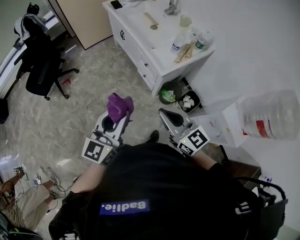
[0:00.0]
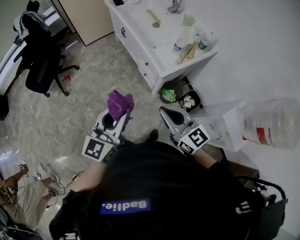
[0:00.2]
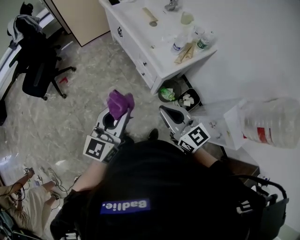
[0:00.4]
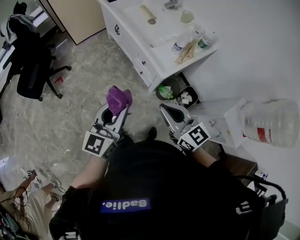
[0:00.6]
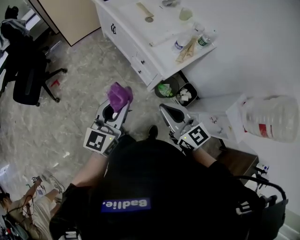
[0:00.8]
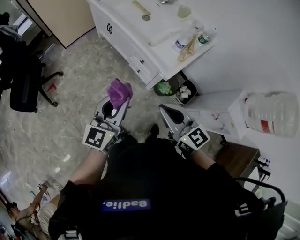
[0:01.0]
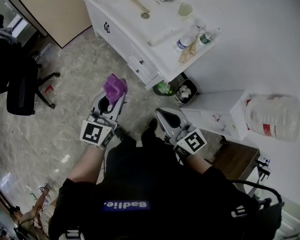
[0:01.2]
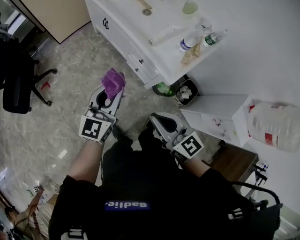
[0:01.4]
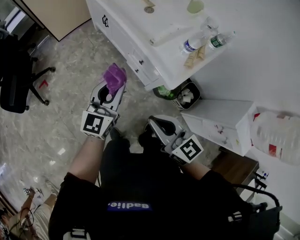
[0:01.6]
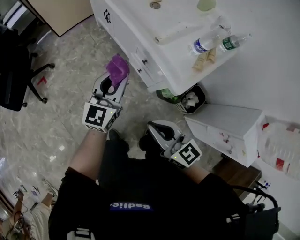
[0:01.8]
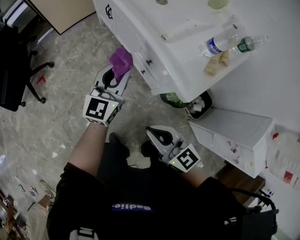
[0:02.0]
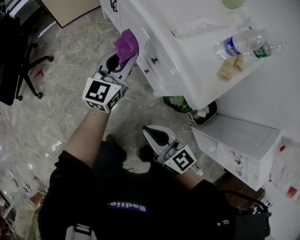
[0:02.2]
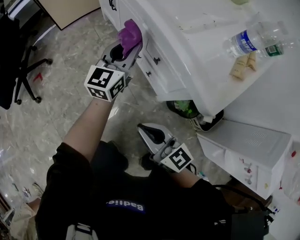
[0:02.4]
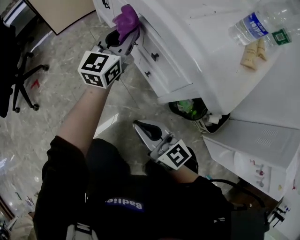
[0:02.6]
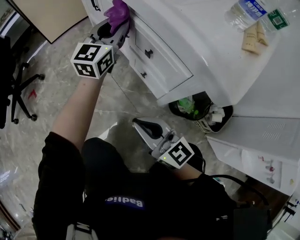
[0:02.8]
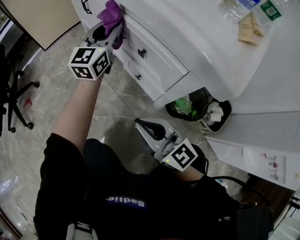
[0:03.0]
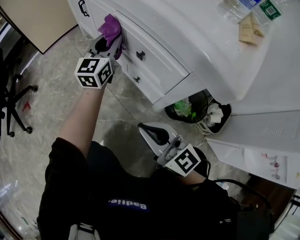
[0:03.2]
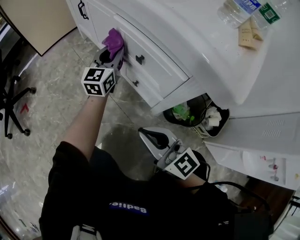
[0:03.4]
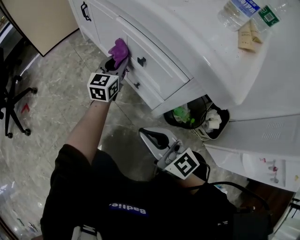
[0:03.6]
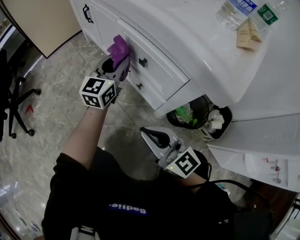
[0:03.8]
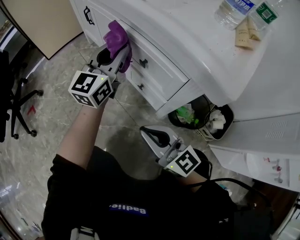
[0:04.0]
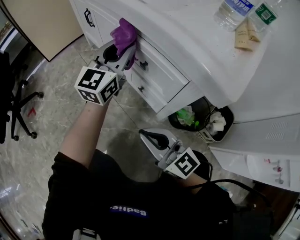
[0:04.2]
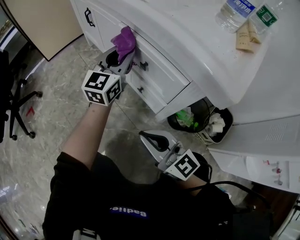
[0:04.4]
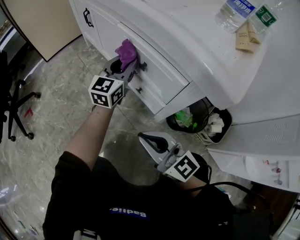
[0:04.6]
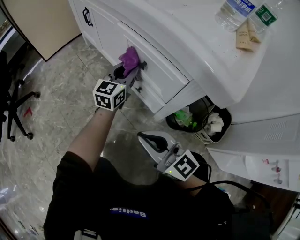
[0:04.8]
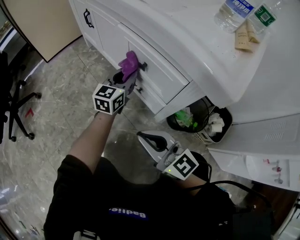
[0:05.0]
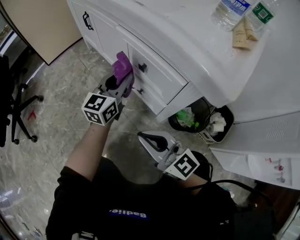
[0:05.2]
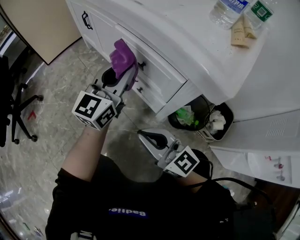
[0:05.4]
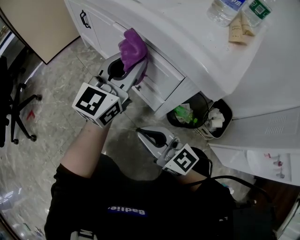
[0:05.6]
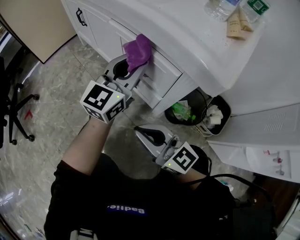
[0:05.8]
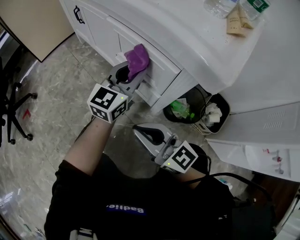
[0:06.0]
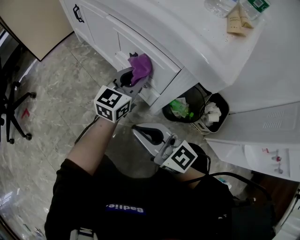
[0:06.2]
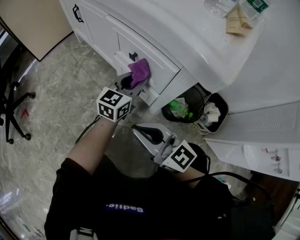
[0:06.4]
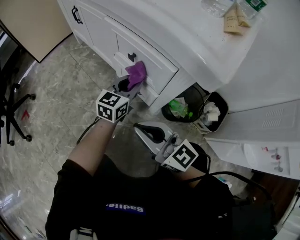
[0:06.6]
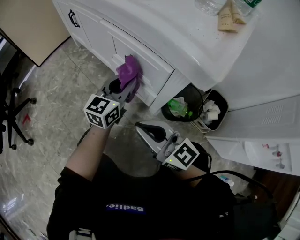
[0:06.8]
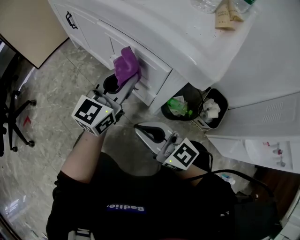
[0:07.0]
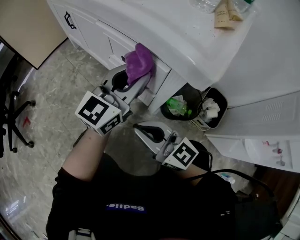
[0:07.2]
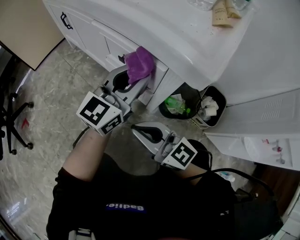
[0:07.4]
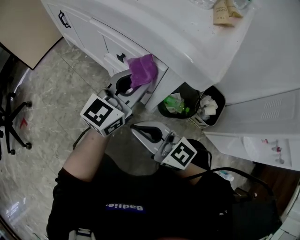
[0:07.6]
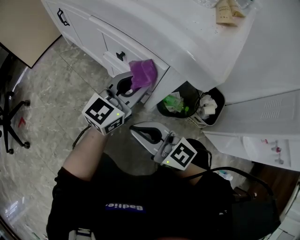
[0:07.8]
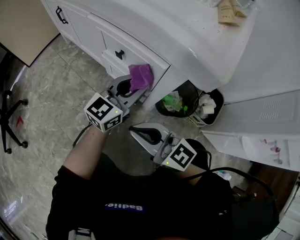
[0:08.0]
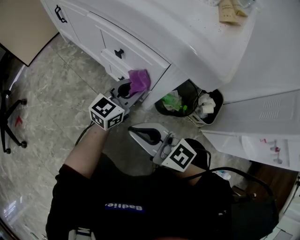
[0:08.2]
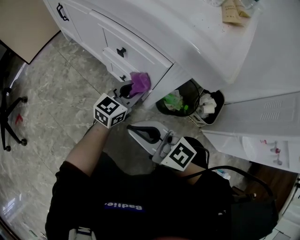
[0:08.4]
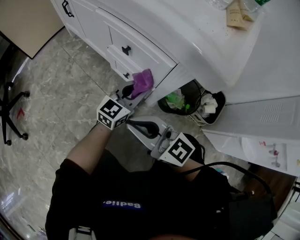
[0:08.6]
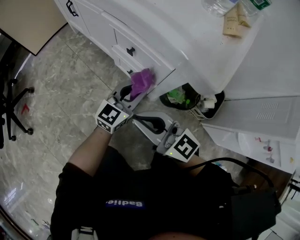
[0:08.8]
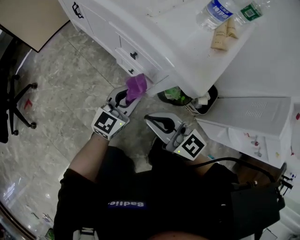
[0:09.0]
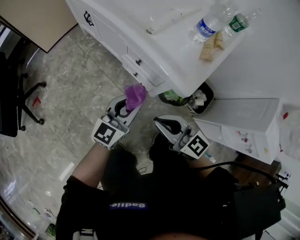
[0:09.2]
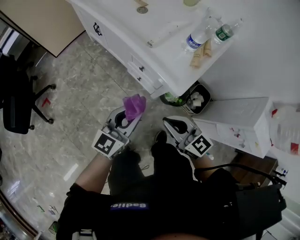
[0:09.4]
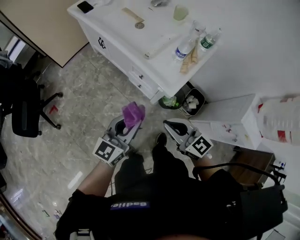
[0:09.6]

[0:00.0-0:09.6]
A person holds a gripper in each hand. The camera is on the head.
0:00.0 to 0:01.6: The right gripper heads forward and downward, covering approximately 25 cm. The left gripper travels forward and downward by about 40 cm.
0:01.6 to 0:03.2: The left gripper moves downward and forward, approximately 40 cm, while the right gripper shifts roughly 40 cm downward.
0:03.2 to 0:04.8: The left gripper moves up and down over some 15 cm, changing direction 2 times.
0:04.8 to 0:06.4: The left gripper shifts about 10 cm backward and to the right, and travels upward and back again, approximately 15 cm each way.
0:06.4 to 0:08.0: The left gripper travels upward and back again, some 15 cm each way.
0:08.0 to 0:09.6: The left gripper shifts some 40 cm upward and backward, while the right gripper is displaced upward by about 40 cm.

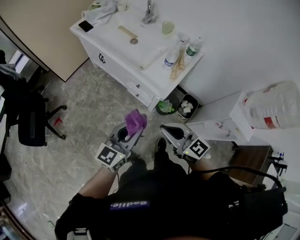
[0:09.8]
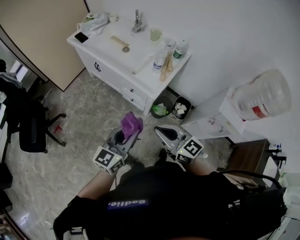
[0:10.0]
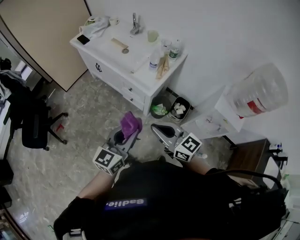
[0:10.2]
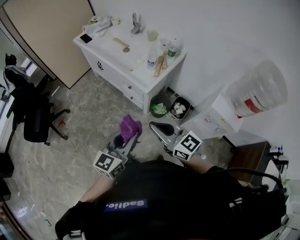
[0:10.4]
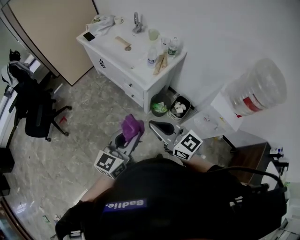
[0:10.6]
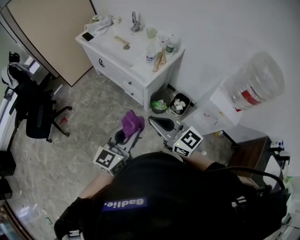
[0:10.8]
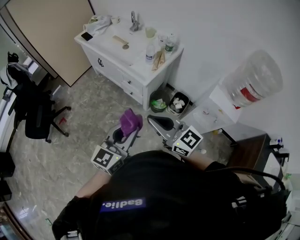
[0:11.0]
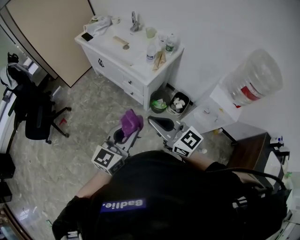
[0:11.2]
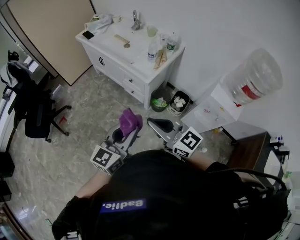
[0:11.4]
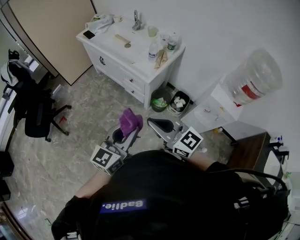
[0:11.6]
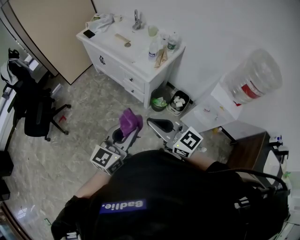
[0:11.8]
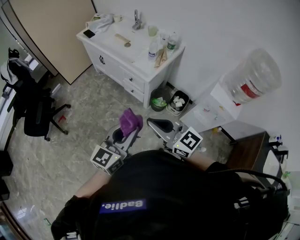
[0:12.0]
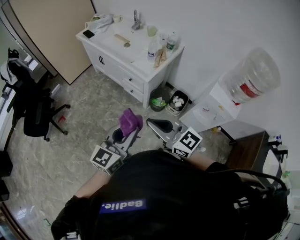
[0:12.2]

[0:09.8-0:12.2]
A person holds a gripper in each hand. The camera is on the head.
0:09.8 to 0:11.0: The two grippers go some 25 cm backward and upward.
0:11.0 to 0:12.2: The right gripper changes place by approximately 5 cm.

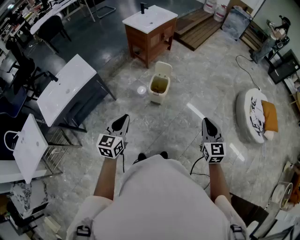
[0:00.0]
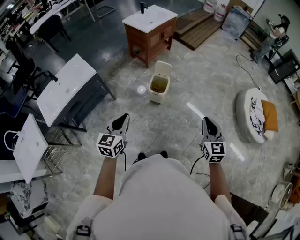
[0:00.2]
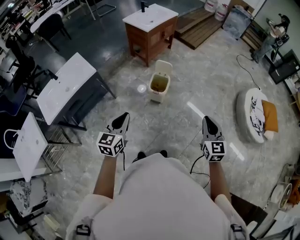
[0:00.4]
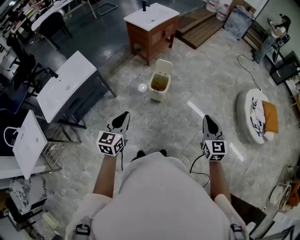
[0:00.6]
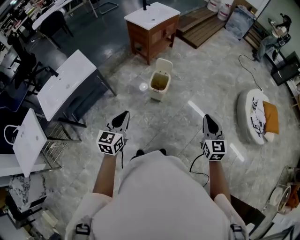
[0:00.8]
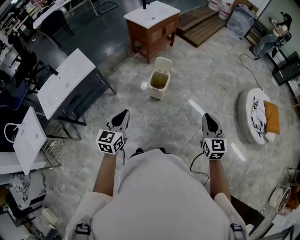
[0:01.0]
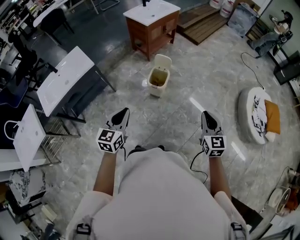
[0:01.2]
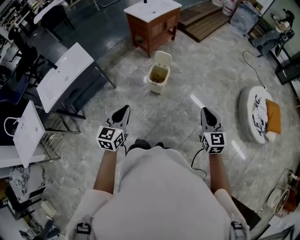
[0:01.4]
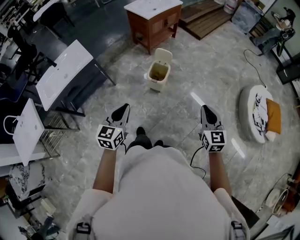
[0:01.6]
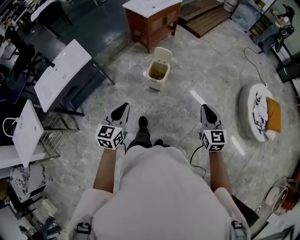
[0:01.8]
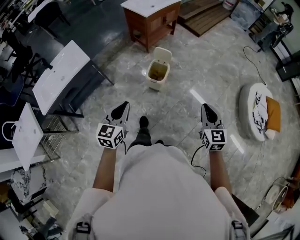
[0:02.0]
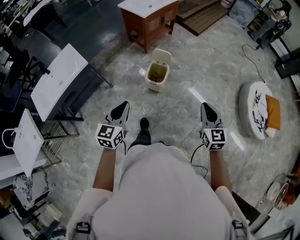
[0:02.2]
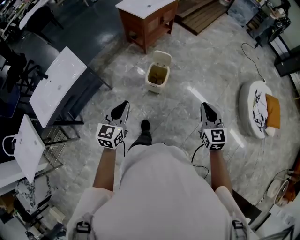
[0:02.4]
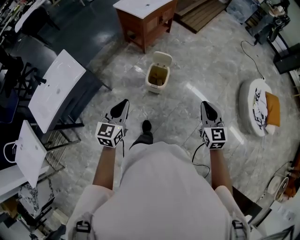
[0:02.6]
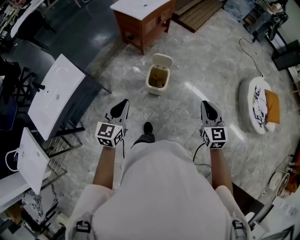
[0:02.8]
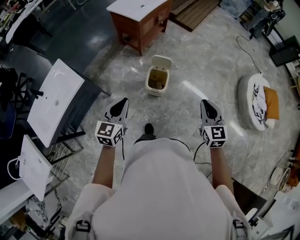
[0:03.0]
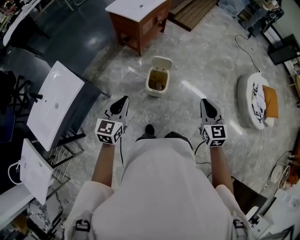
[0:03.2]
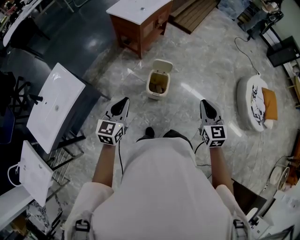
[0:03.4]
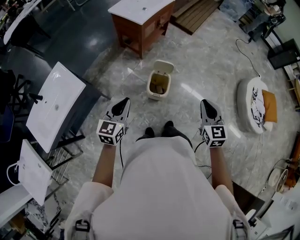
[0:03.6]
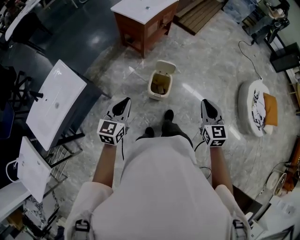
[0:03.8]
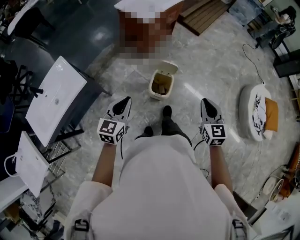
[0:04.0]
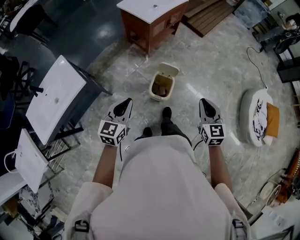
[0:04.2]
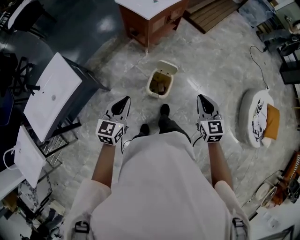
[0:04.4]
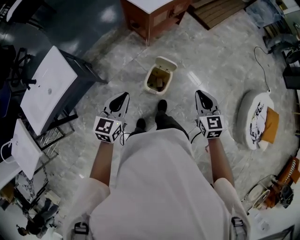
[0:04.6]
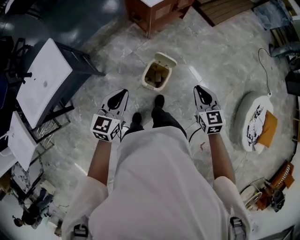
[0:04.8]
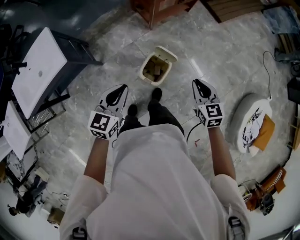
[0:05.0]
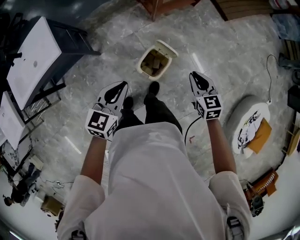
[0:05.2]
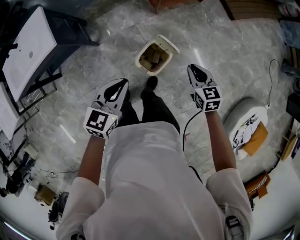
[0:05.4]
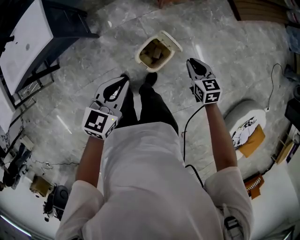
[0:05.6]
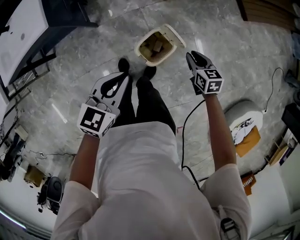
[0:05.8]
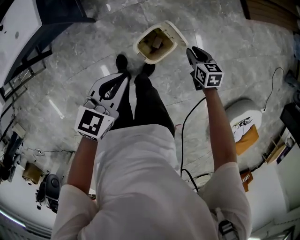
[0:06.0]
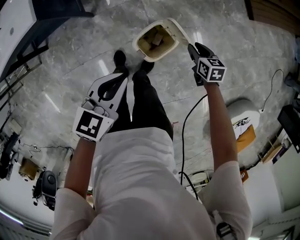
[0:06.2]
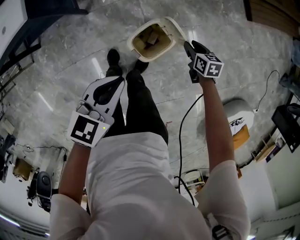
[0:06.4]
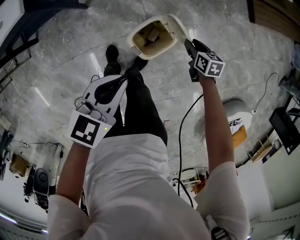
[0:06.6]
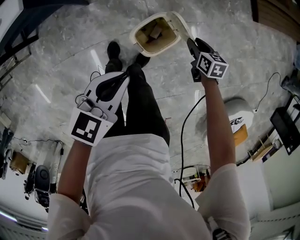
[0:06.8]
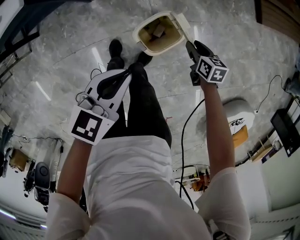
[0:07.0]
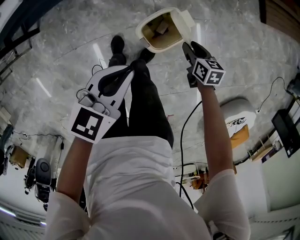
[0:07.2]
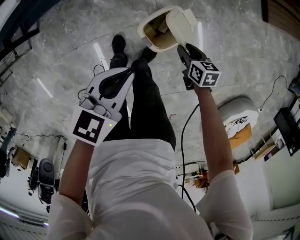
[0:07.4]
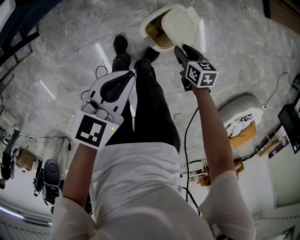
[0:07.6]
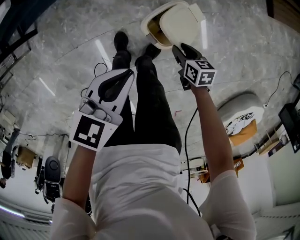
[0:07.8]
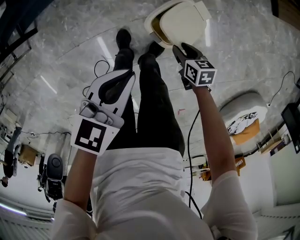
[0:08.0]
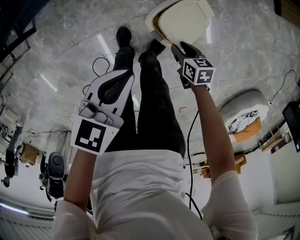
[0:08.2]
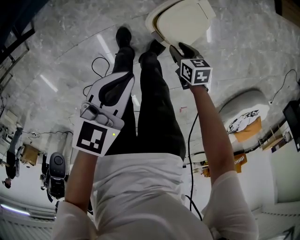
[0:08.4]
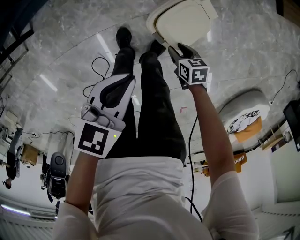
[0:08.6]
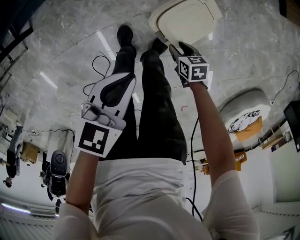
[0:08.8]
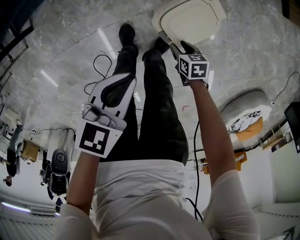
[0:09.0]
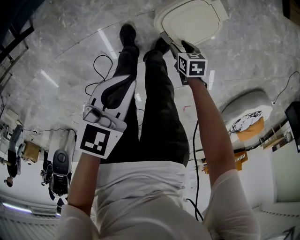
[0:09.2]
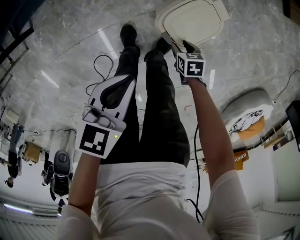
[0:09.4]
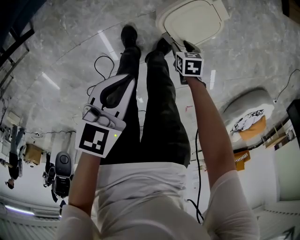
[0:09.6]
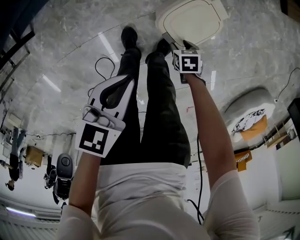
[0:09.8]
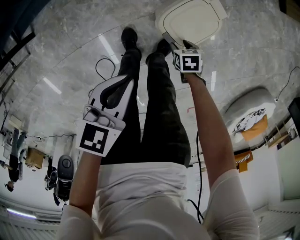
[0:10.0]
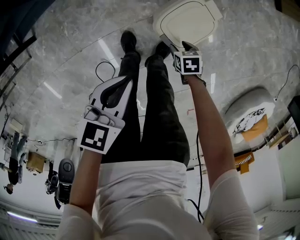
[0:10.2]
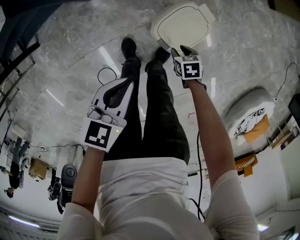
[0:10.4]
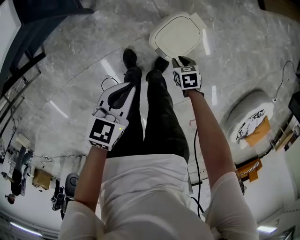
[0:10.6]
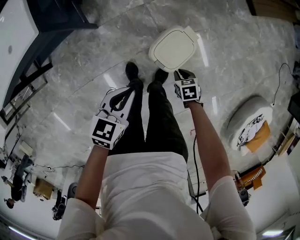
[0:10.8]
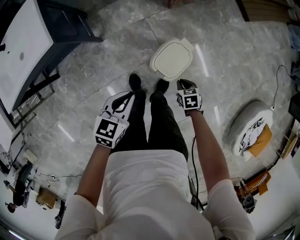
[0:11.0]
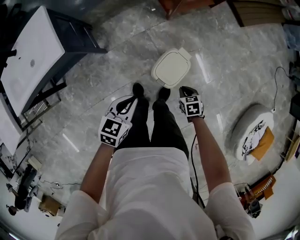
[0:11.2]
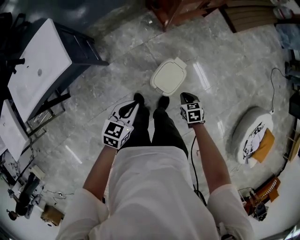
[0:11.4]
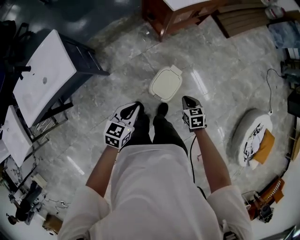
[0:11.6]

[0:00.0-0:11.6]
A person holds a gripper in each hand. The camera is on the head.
0:00.0 to 0:01.4: The left gripper goes some 5 cm to the right. The right gripper shifts by approximately 5 cm.
0:01.4 to 0:02.8: The two grippers go about 20 cm forward and to the left.
0:02.8 to 0:04.4: The two grippers go roughly 15 cm forward.
0:04.4 to 0:05.8: The left gripper shifts by some 15 cm. Meanwhile the right gripper travels downward by about 30 cm, and rotates about 40 degrees.
0:05.8 to 0:07.2: The grippers both shift downward by approximately 10 cm.
0:07.2 to 0:08.8: The left gripper goes roughly 10 cm downward and to the left, while the right gripper heads downward, to the left and backward, covering roughly 20 cm.
0:08.8 to 0:10.2: The grippers make only small movements.
0:10.2 to 0:11.6: The left gripper moves upward, about 15 cm. The right gripper is displaced upward by roughly 35 cm, rotates about 30 degrees, and closes up.
